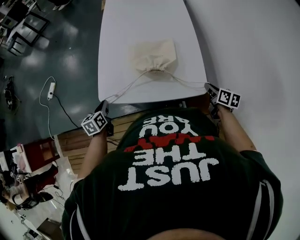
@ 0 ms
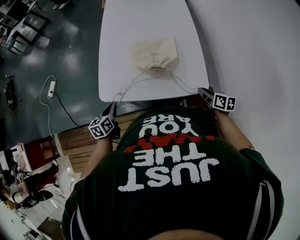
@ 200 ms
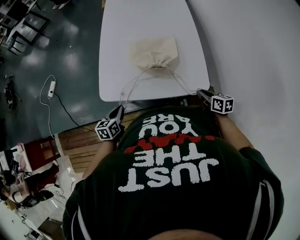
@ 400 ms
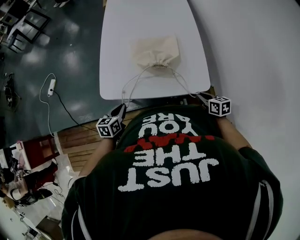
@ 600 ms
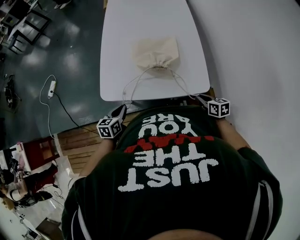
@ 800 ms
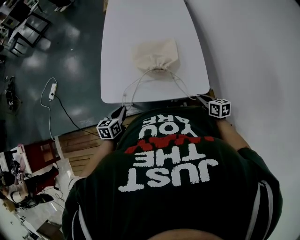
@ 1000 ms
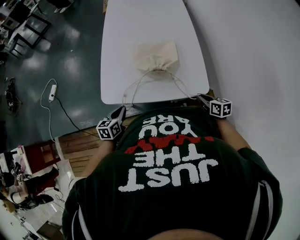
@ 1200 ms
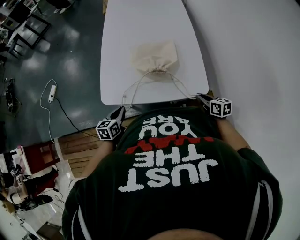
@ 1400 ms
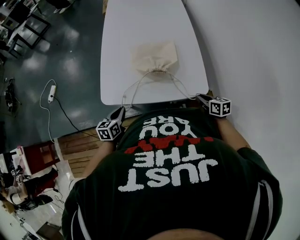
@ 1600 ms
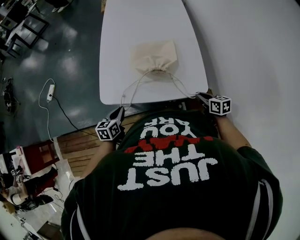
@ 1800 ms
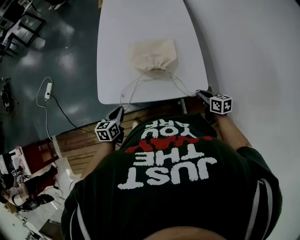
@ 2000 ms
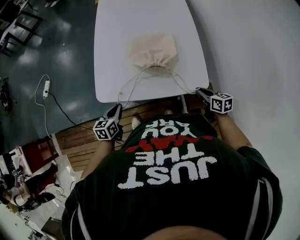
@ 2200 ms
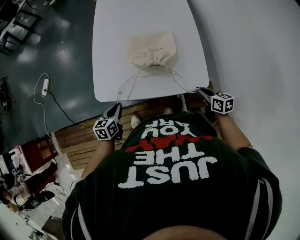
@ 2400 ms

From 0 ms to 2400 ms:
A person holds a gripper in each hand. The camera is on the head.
From 0 ms to 1200 ms: The left gripper heads to the right and backward, covering about 10 cm. The right gripper goes some 10 cm to the left and backward.
From 1200 ms to 2400 ms: There are only small adjustments of the grippers.

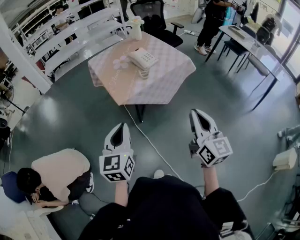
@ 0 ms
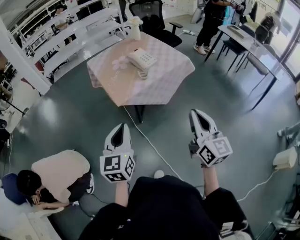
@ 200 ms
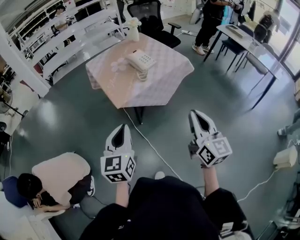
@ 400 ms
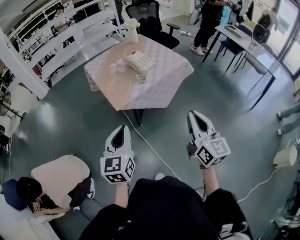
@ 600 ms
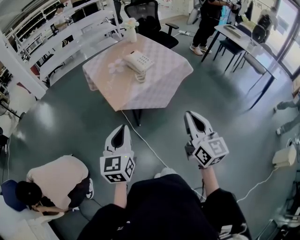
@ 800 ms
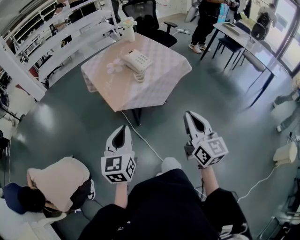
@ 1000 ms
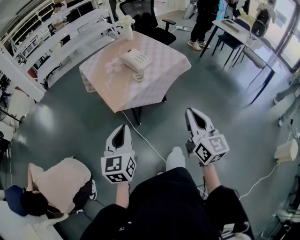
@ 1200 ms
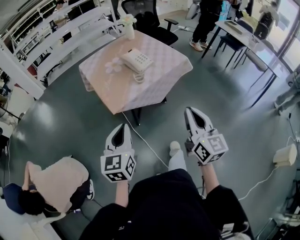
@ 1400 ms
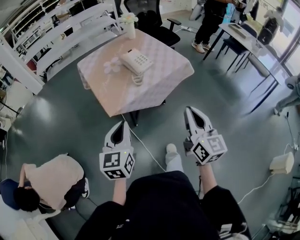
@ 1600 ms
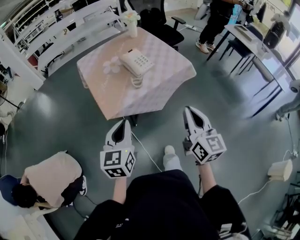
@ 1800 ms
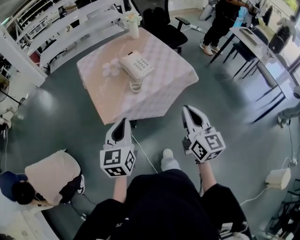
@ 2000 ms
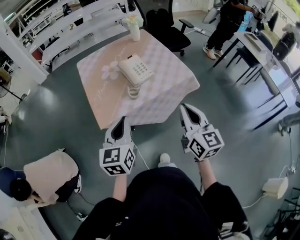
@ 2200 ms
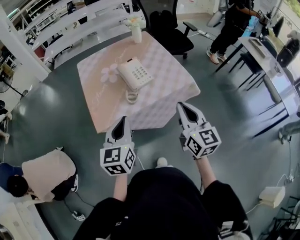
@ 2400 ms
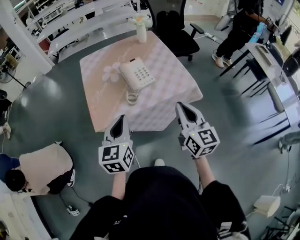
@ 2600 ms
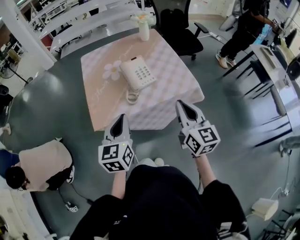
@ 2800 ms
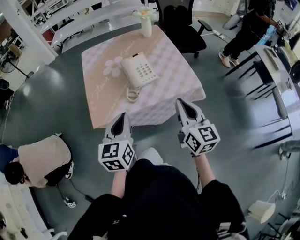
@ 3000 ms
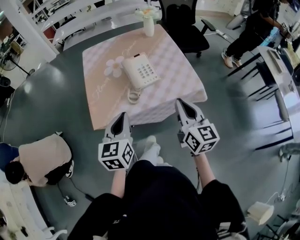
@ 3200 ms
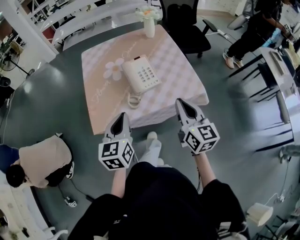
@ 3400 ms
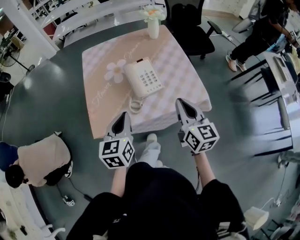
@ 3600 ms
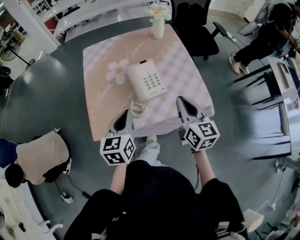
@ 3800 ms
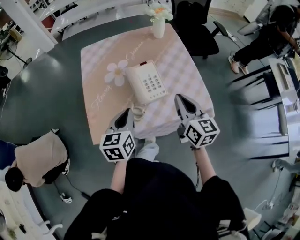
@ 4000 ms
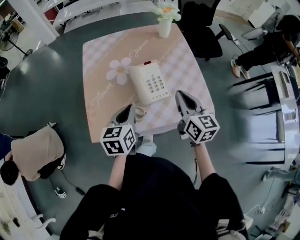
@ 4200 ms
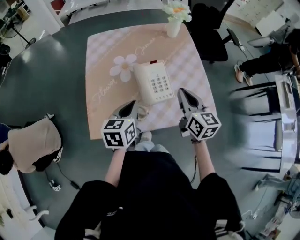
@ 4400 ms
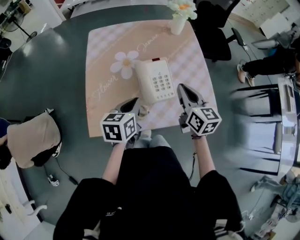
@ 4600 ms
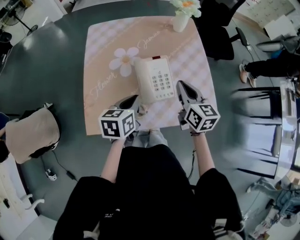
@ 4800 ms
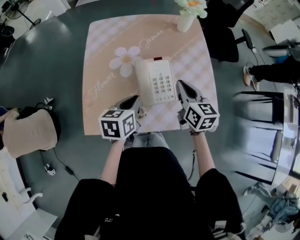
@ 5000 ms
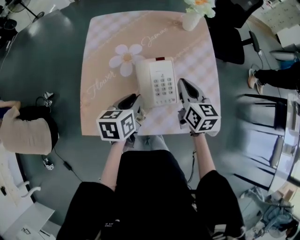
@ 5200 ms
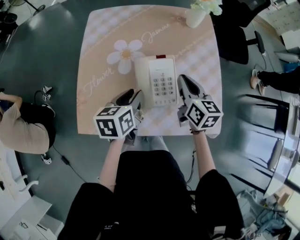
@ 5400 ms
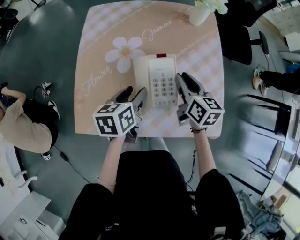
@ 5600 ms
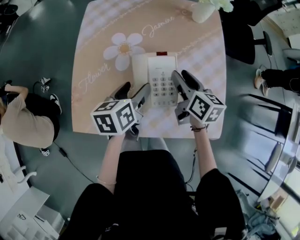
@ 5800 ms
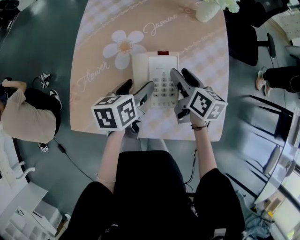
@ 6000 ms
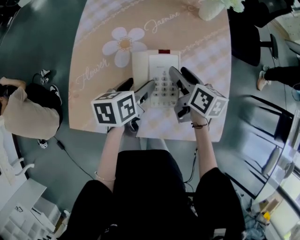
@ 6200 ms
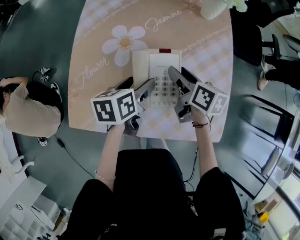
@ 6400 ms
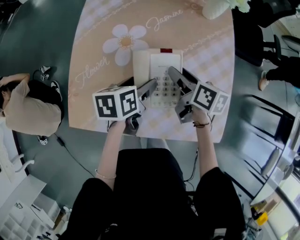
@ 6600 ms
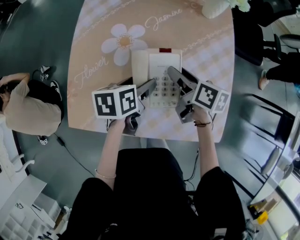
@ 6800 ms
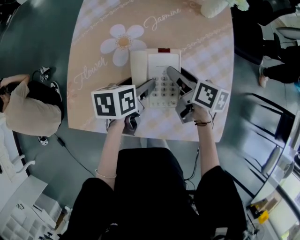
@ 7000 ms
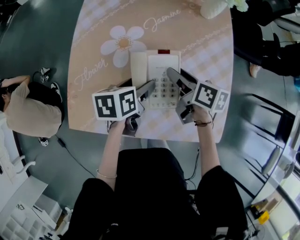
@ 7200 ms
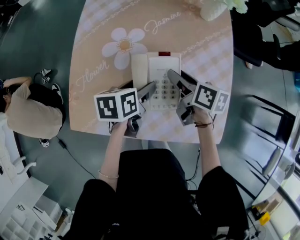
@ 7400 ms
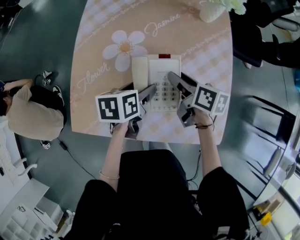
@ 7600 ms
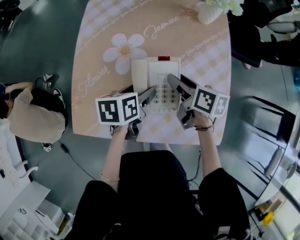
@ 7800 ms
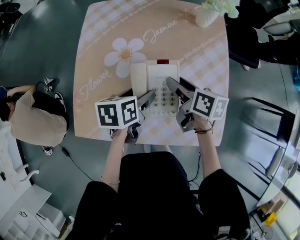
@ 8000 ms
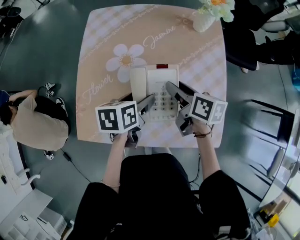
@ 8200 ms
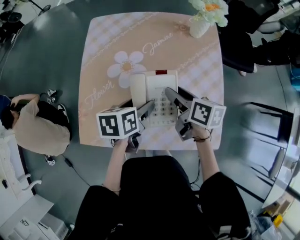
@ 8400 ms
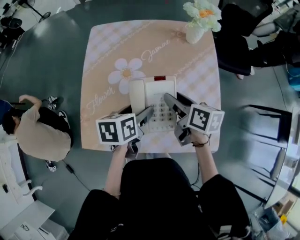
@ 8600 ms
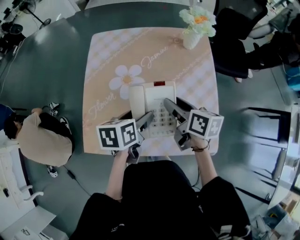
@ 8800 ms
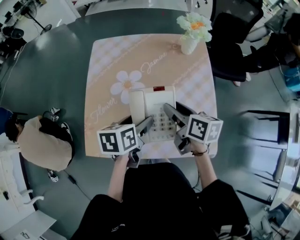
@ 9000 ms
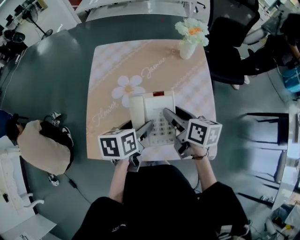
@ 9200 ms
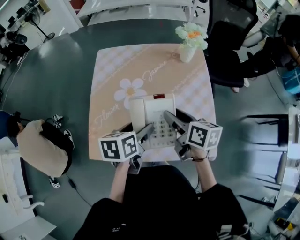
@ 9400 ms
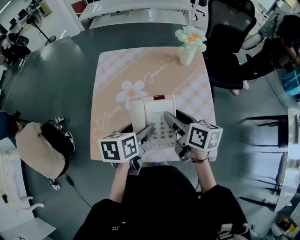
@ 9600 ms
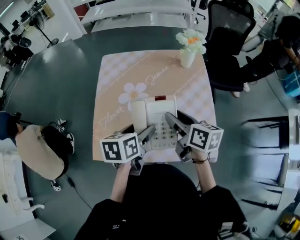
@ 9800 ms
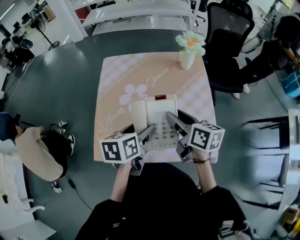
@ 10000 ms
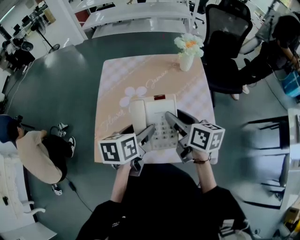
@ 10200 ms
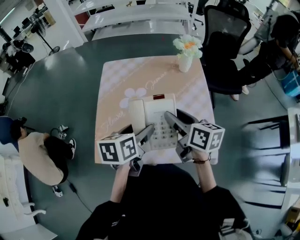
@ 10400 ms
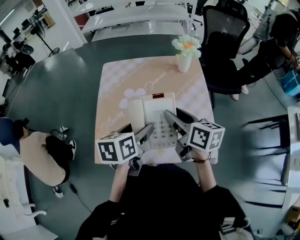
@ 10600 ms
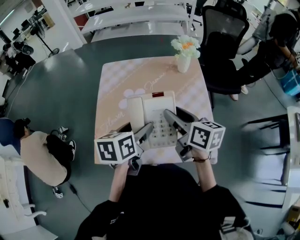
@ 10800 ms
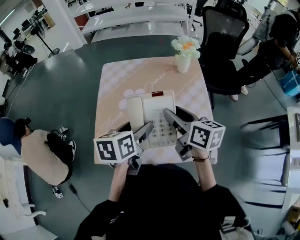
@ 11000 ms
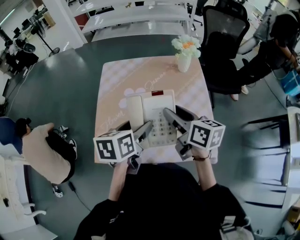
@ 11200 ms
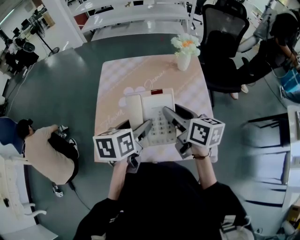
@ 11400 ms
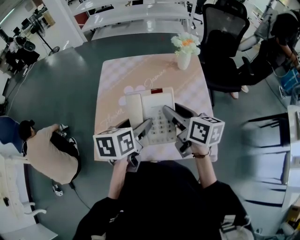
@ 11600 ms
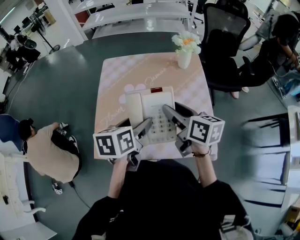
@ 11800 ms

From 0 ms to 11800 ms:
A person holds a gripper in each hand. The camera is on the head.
From 0 ms to 1400 ms: The grippers both shift forward by some 10 cm.
From 1400 ms to 3000 ms: The left gripper travels forward and to the right by roughly 25 cm. Meanwhile the right gripper is displaced forward by some 30 cm, and changes its angle by approximately 20 degrees.
From 3000 ms to 4400 ms: The left gripper goes approximately 20 cm forward and downward; the right gripper shifts some 25 cm forward.
From 4400 ms to 6000 ms: Both grippers move forward and downward, about 15 cm. The right gripper changes its angle by about 30 degrees, and opens. The left gripper turns by about 20 degrees, and opens its fingers.
From 6000 ms to 7400 ms: The grippers make only small movements.
From 7400 ms to 8800 ms: Both grippers travel together upward, roughly 10 cm.
From 8800 ms to 10400 ms: Both grippers move upward, some 10 cm.
From 10400 ms to 11800 ms: The grippers make only small movements.

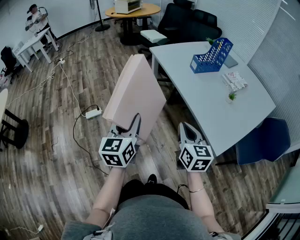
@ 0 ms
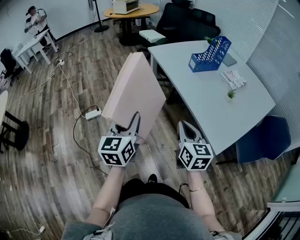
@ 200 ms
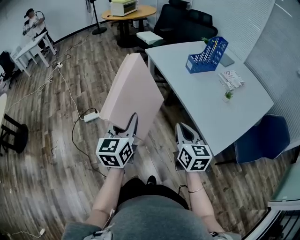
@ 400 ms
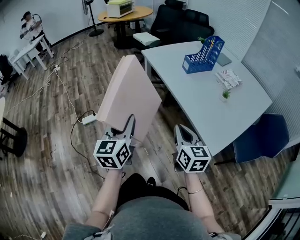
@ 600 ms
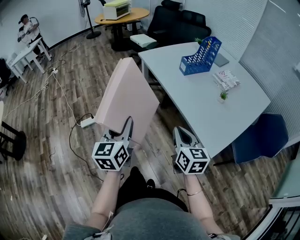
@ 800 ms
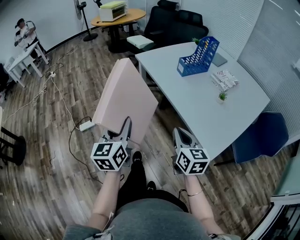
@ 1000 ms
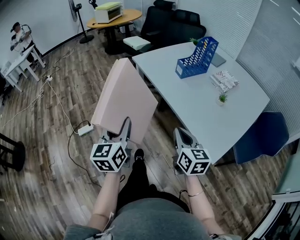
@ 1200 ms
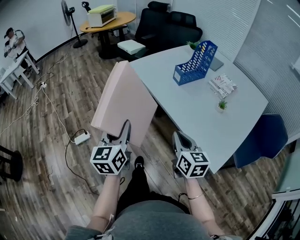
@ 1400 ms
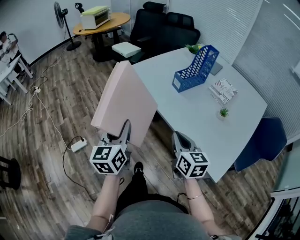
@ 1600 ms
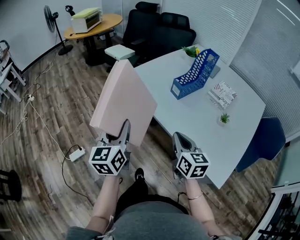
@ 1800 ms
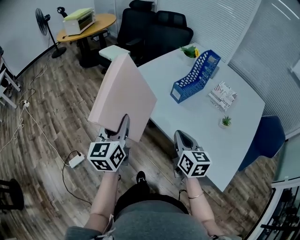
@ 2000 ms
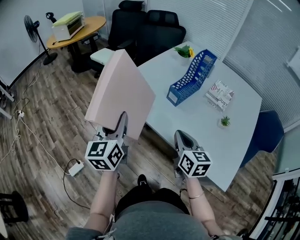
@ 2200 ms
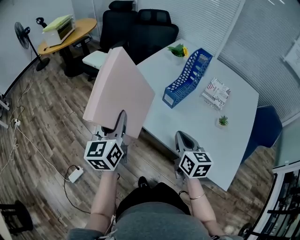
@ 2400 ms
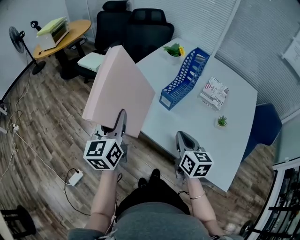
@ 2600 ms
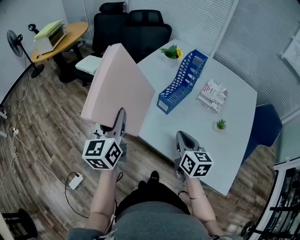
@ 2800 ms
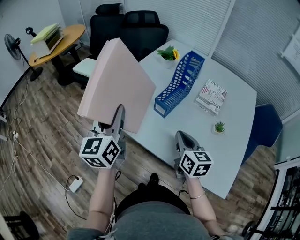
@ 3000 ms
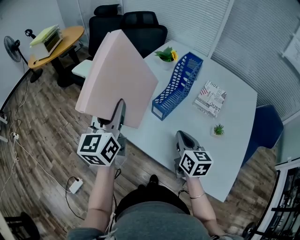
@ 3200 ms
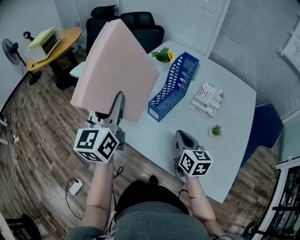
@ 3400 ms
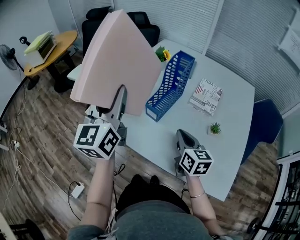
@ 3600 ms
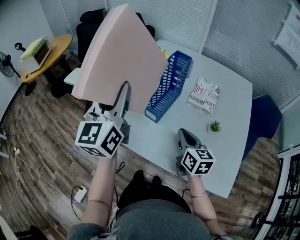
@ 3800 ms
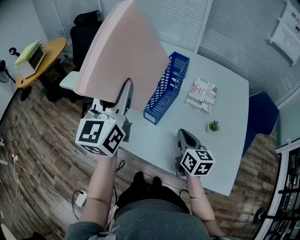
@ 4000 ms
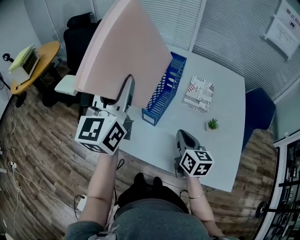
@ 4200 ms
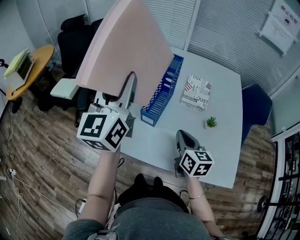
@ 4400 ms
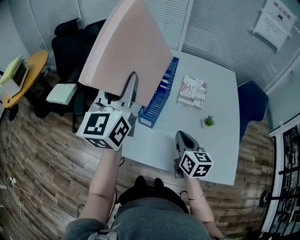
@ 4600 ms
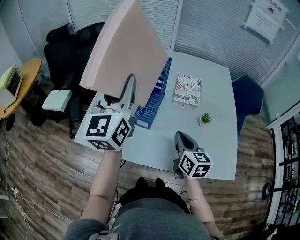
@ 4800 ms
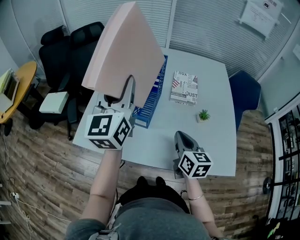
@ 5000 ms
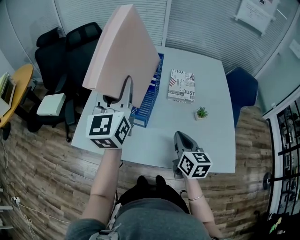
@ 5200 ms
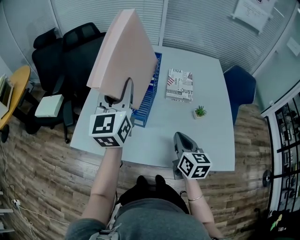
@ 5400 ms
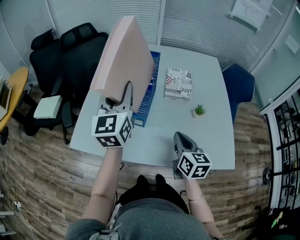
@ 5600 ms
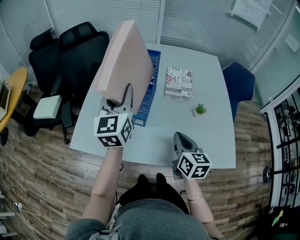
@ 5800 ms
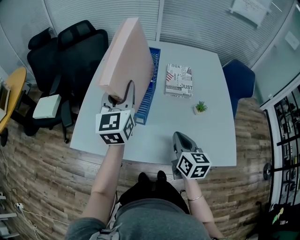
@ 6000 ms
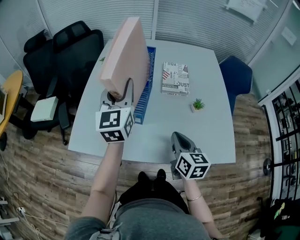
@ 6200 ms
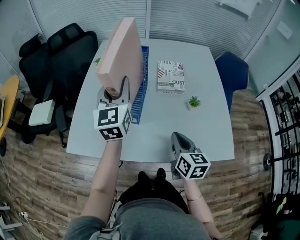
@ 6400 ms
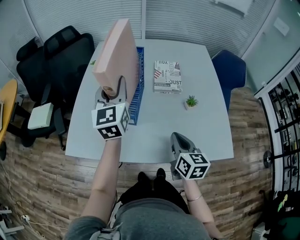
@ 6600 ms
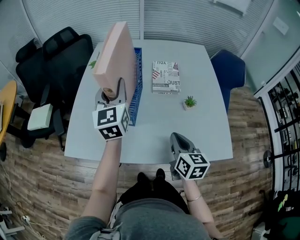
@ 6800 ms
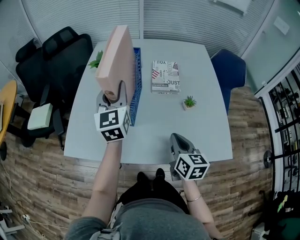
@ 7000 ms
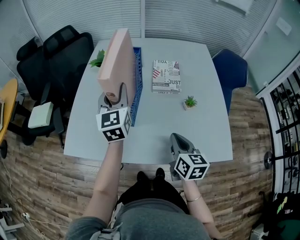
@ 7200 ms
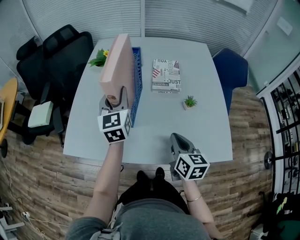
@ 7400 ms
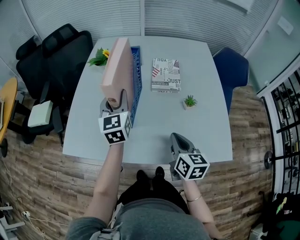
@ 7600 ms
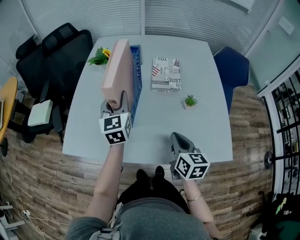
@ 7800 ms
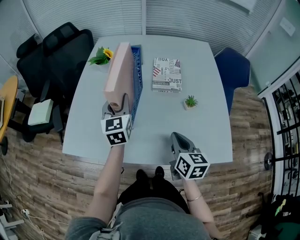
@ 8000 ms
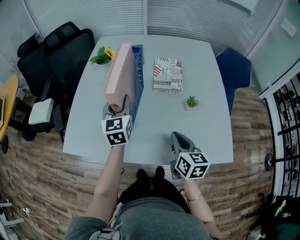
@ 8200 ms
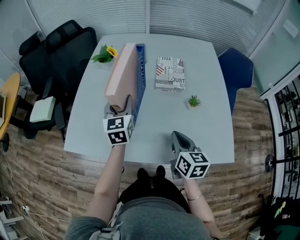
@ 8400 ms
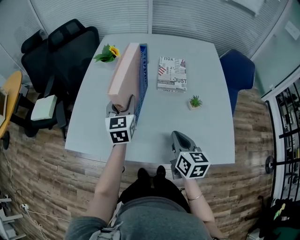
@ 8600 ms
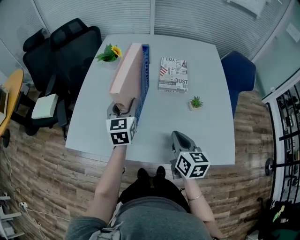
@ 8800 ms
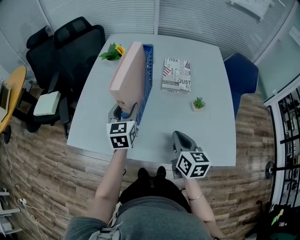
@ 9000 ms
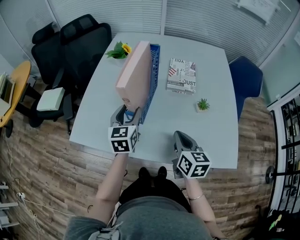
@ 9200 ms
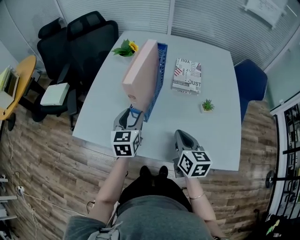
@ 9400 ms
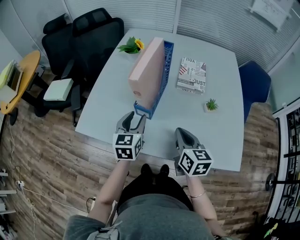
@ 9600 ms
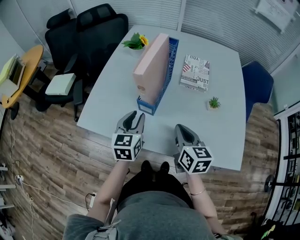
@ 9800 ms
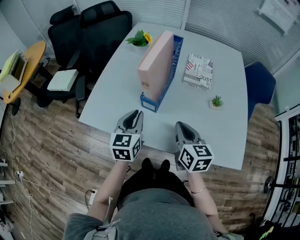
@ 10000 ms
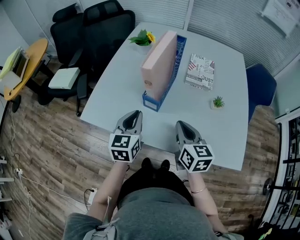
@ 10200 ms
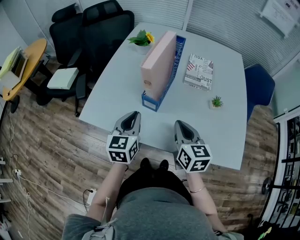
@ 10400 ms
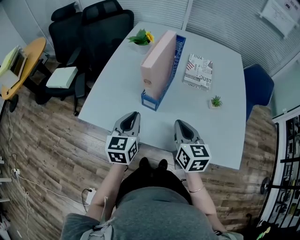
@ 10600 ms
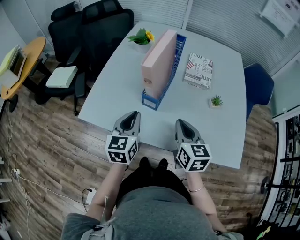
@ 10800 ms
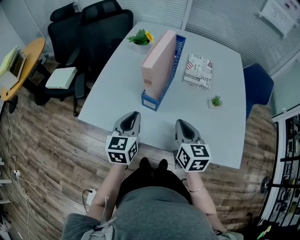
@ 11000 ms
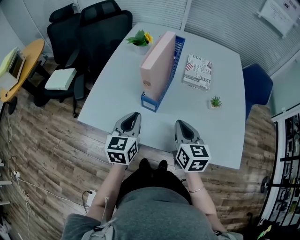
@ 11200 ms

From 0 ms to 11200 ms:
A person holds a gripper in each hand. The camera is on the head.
From 0 ms to 1600 ms: The grippers both shift forward by approximately 20 cm.
From 1600 ms to 3200 ms: The grippers both shift forward by roughly 25 cm. The left gripper changes its angle by roughly 20 degrees.
From 3200 ms to 4800 ms: The left gripper moves forward, to the right and upward, approximately 15 cm, and swivels roughly 30 degrees. The right gripper swivels roughly 20 degrees.
From 4800 ms to 6400 ms: The left gripper heads downward and forward, covering some 10 cm.
From 6400 ms to 8000 ms: The left gripper moves downward, approximately 10 cm.
From 8000 ms to 9600 ms: The right gripper goes about 5 cm to the left; the left gripper goes about 10 cm backward and downward.
From 9600 ms to 11200 ms: The left gripper moves about 5 cm, and closes its fingers.
